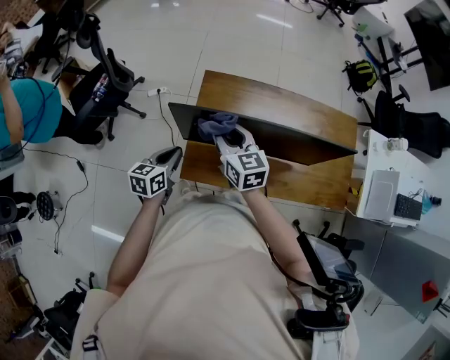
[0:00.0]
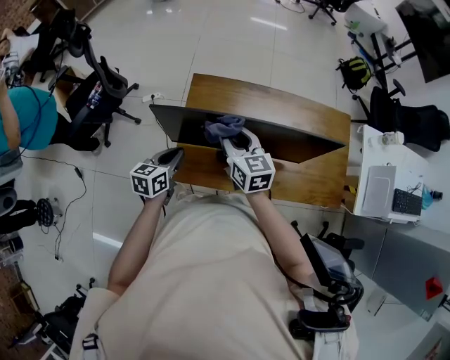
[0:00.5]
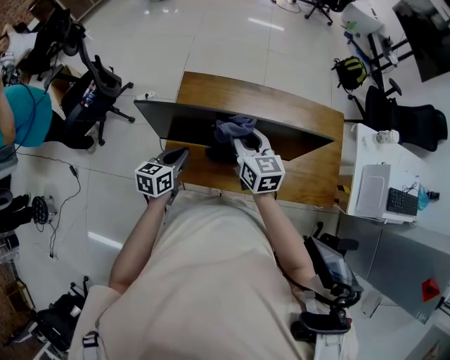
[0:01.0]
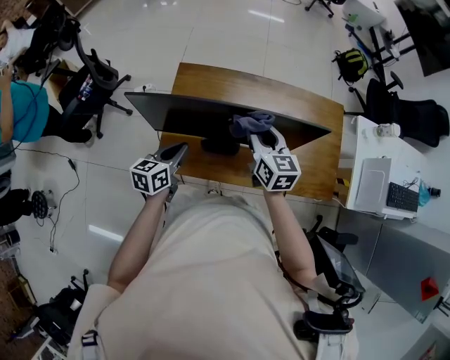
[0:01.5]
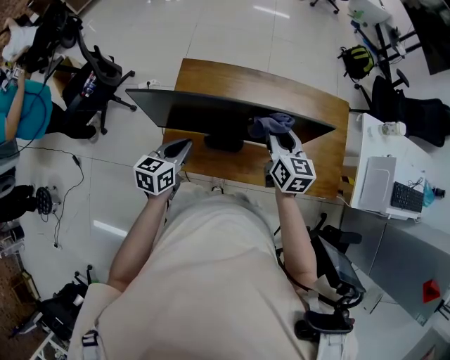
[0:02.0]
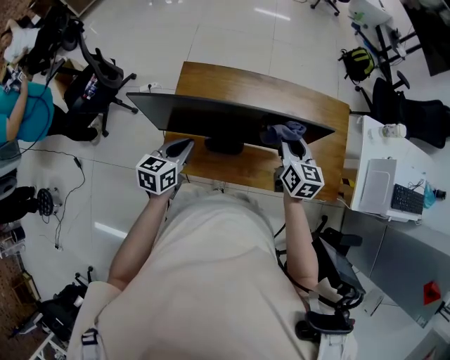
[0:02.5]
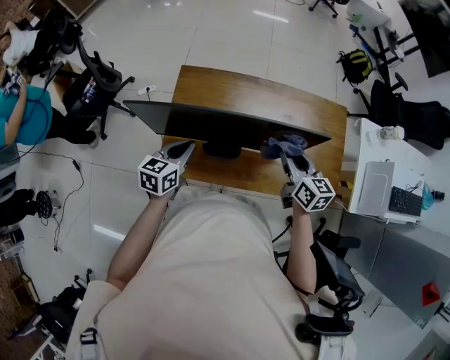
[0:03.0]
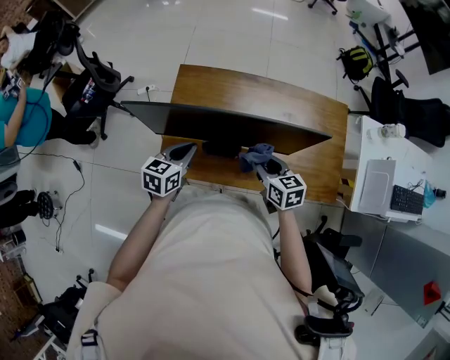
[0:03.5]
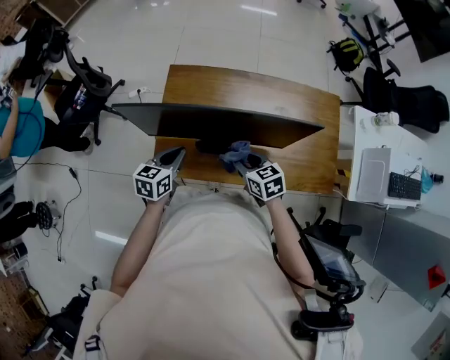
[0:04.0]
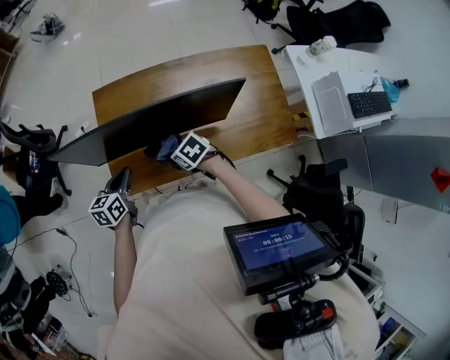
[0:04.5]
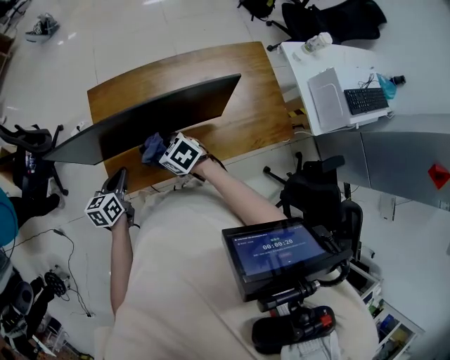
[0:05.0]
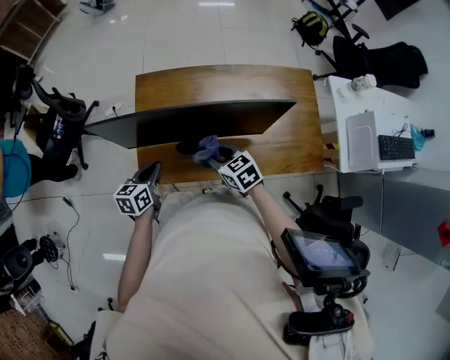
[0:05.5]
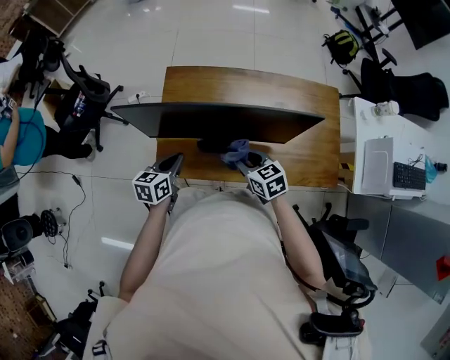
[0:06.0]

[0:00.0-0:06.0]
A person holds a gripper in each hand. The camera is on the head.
0:00.0 to 0:02.0: The right gripper moves to the right, some 25 cm. Meanwhile the left gripper moves to the right, some 15 cm.
0:02.0 to 0:04.0: The right gripper travels downward, backward and to the left by some 15 cm, and changes its angle by some 30 degrees.

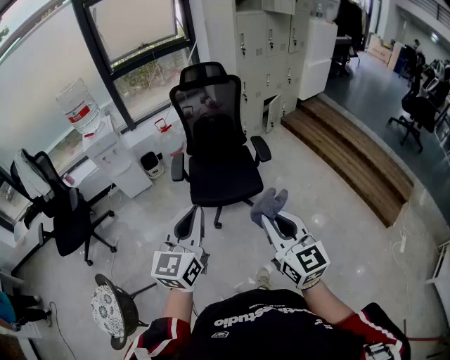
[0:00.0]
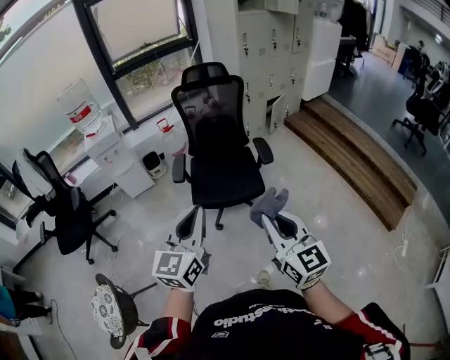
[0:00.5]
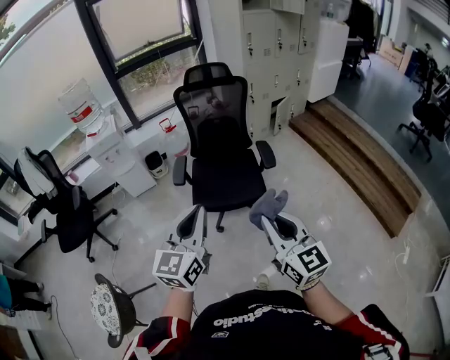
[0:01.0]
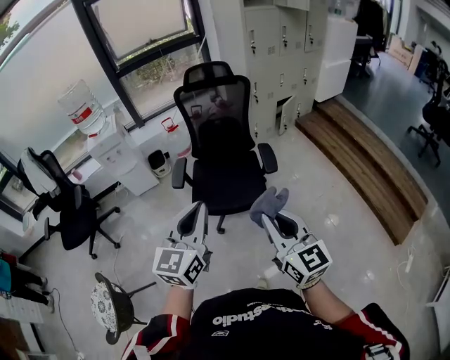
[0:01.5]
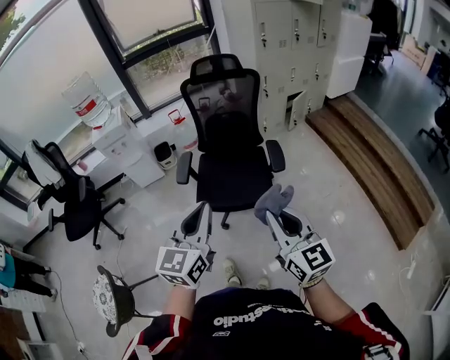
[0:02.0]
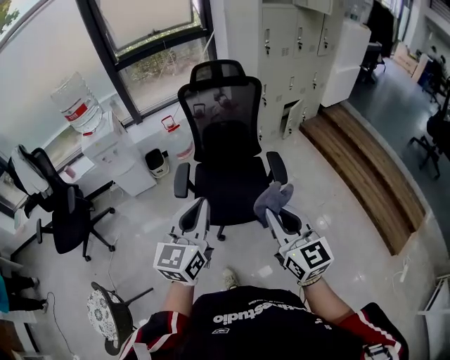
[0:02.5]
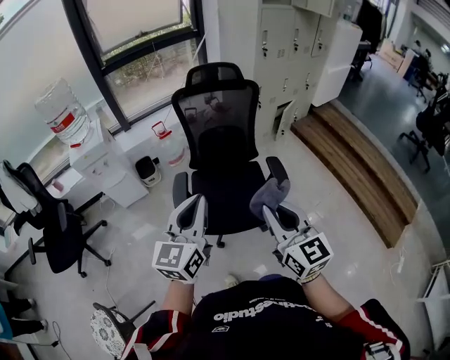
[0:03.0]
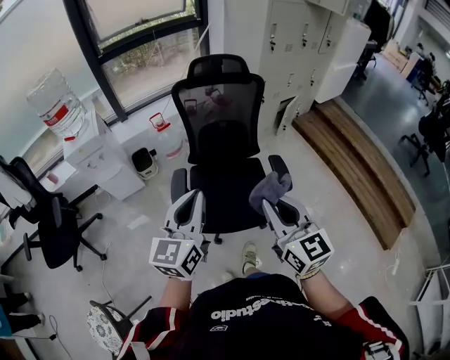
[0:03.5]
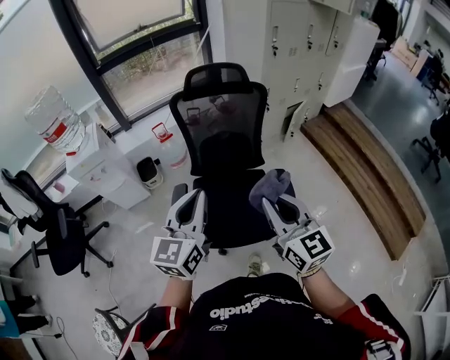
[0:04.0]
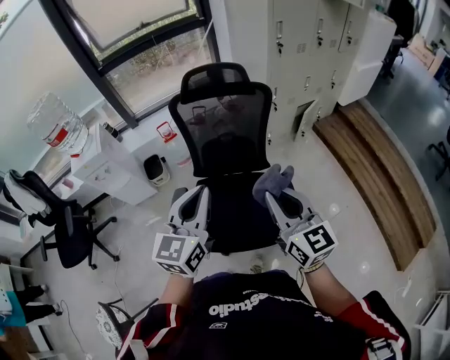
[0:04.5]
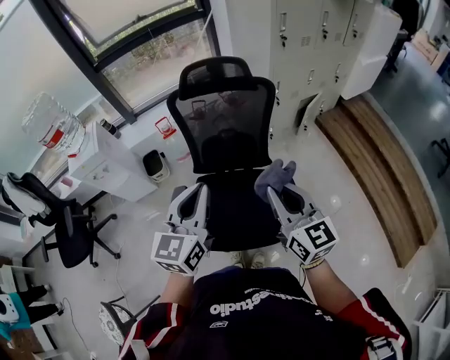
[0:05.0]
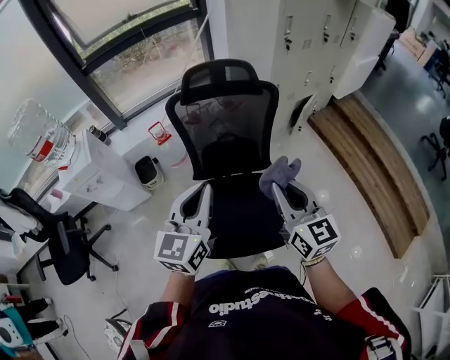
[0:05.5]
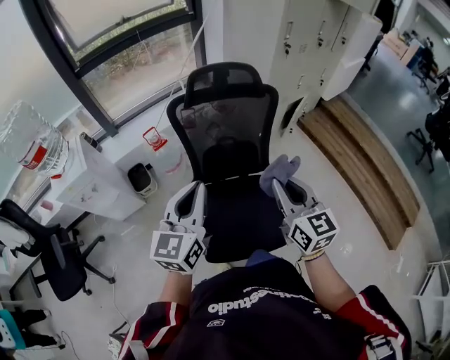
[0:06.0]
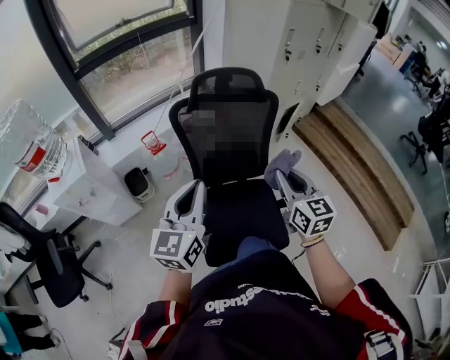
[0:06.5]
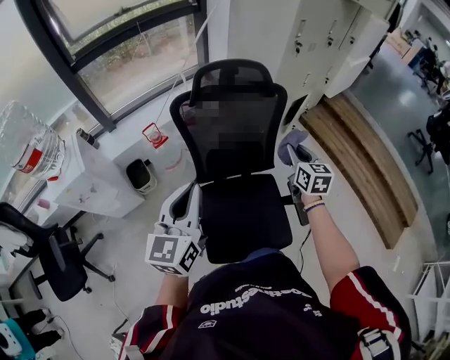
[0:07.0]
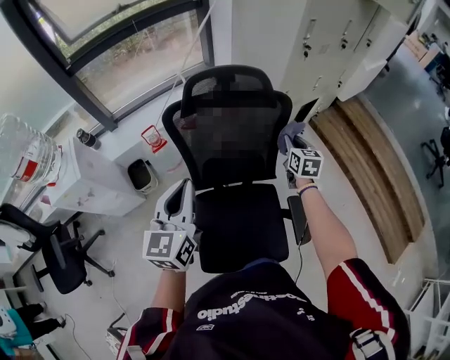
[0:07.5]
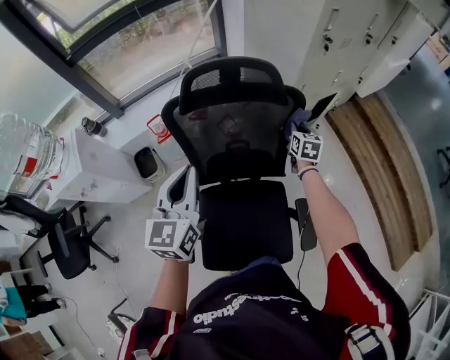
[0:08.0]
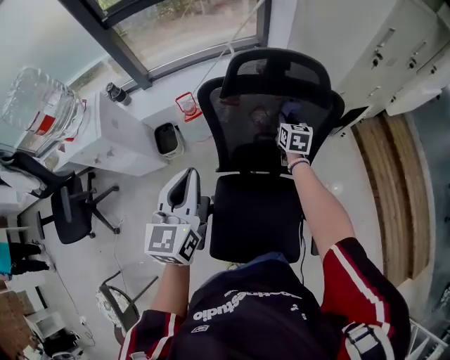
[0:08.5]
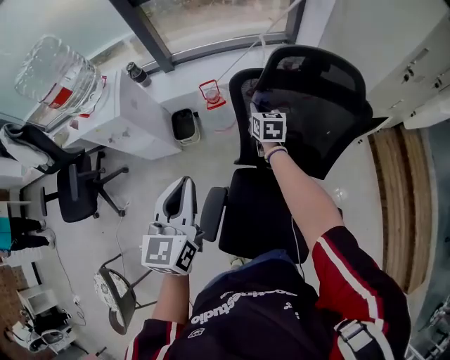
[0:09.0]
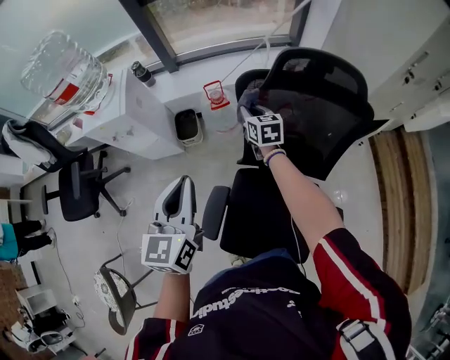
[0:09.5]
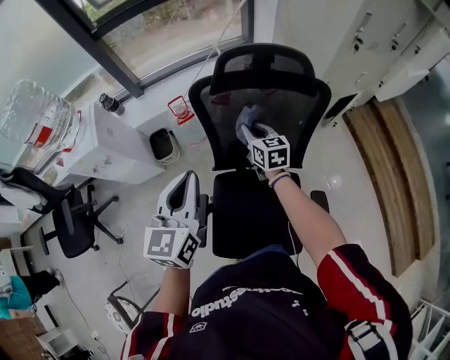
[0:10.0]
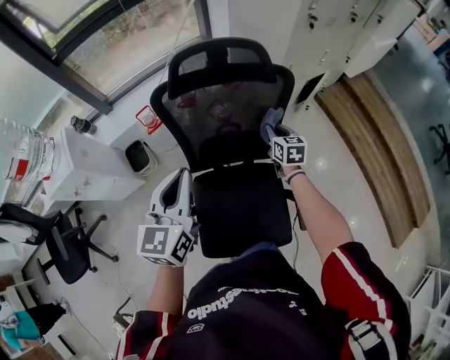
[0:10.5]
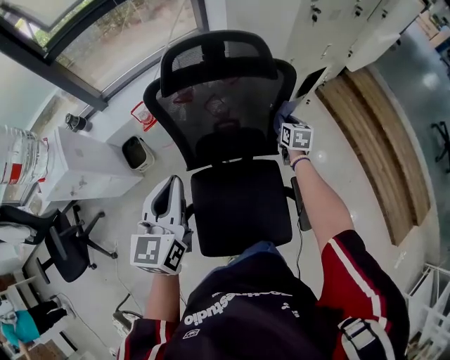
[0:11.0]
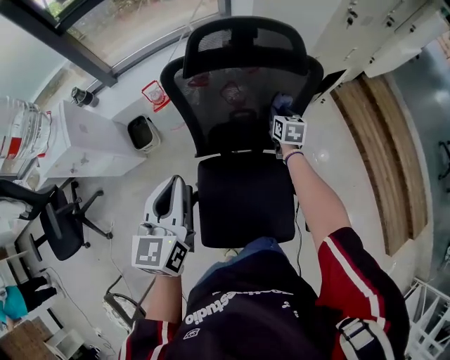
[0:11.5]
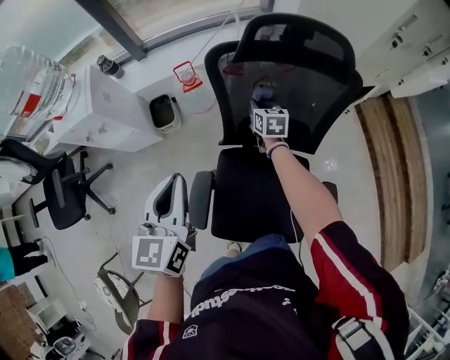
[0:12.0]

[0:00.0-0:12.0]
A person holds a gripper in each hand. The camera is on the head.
0:00.0 to 0:02.0: Both grippers travel together forward and to the right, about 20 cm.
0:02.0 to 0:04.0: The two grippers go about 35 cm forward.
0:04.0 to 0:06.0: The left gripper heads forward and to the left, covering about 20 cm; the right gripper shifts some 20 cm forward.
0:06.0 to 0:08.0: The right gripper moves forward and downward, approximately 50 cm, and swivels roughly 30 degrees. The left gripper is displaced forward by about 25 cm.
0:08.0 to 0:10.0: The right gripper swivels some 30 degrees.
0:10.0 to 0:12.0: The right gripper heads downward and forward, covering about 15 cm, and travels to the right and back again, roughly 30 cm each way, while the left gripper moves to the left and downward, approximately 10 cm.

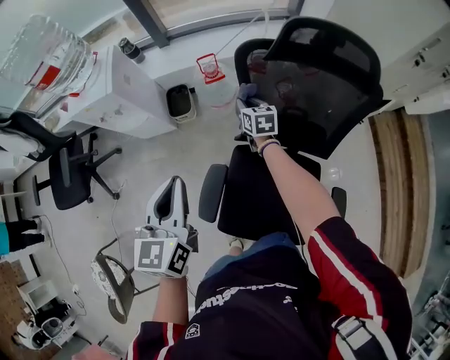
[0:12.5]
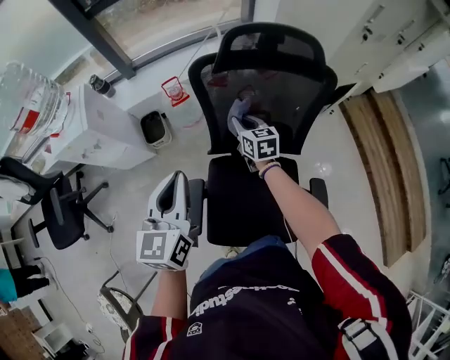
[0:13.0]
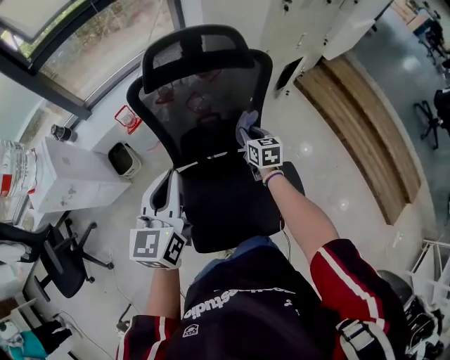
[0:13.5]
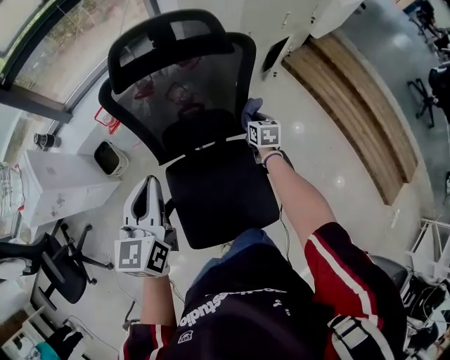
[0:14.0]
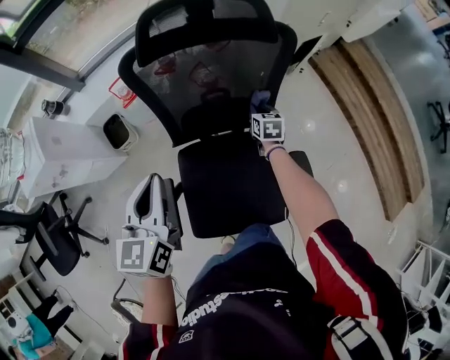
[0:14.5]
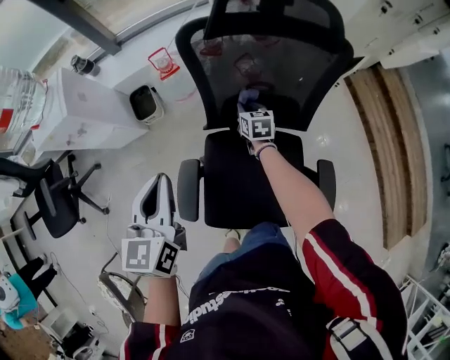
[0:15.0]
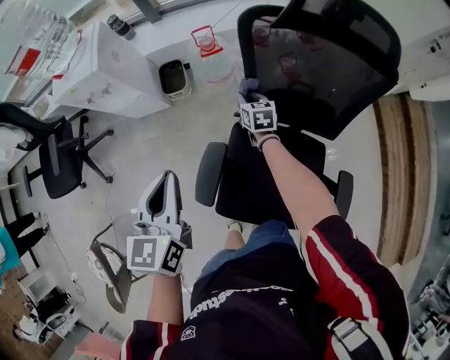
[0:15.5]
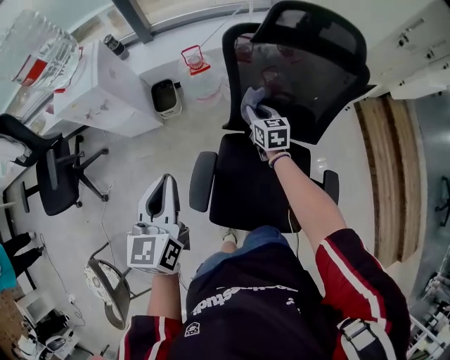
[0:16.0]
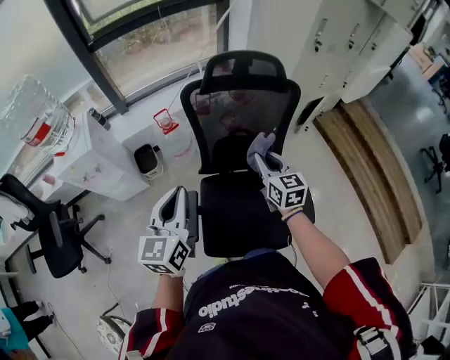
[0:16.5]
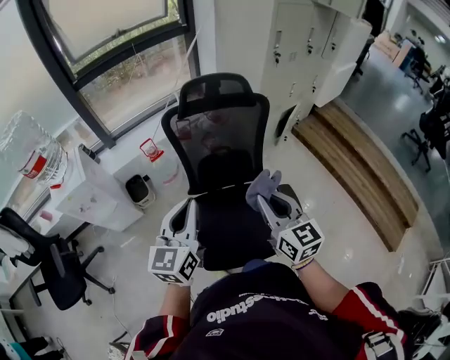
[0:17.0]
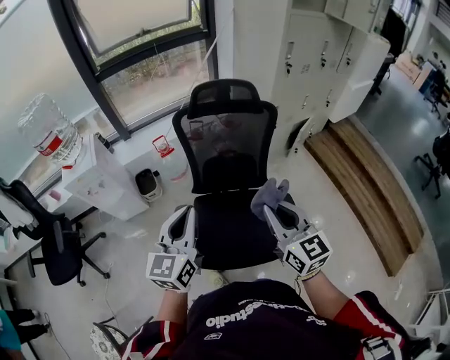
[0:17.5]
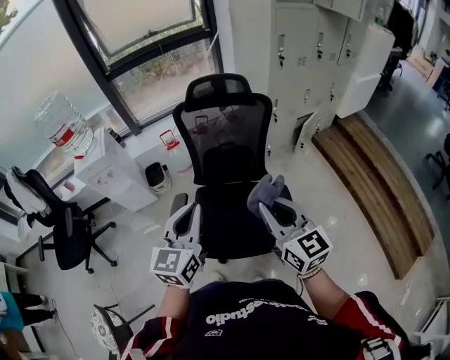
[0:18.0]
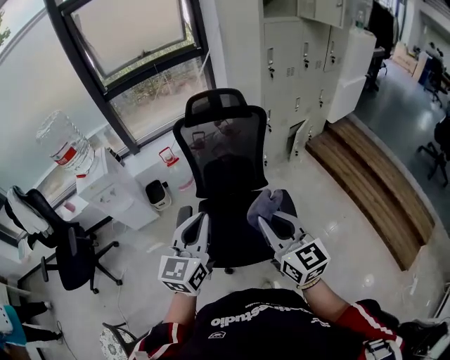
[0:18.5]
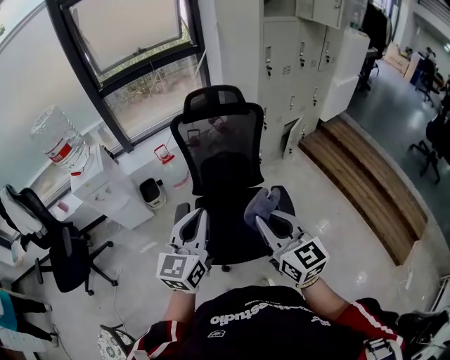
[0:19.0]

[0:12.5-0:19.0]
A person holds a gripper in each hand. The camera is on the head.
0:12.5 to 0:14.5: The left gripper ends up roughly 20 cm from where it was, and rotates some 20 degrees. The right gripper changes place by roughly 40 cm, and rotates roughly 30 degrees.
0:14.5 to 0:17.0: The left gripper shifts by some 25 cm. Meanwhile the right gripper is displaced upward by some 40 cm, and tilts its fingers some 30 degrees upward.
0:17.0 to 0:19.0: The right gripper travels backward by some 20 cm, while the left gripper moves backward and to the right, about 20 cm.

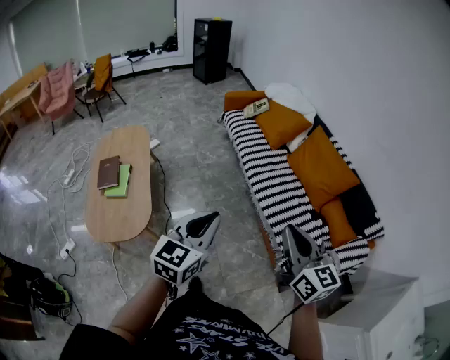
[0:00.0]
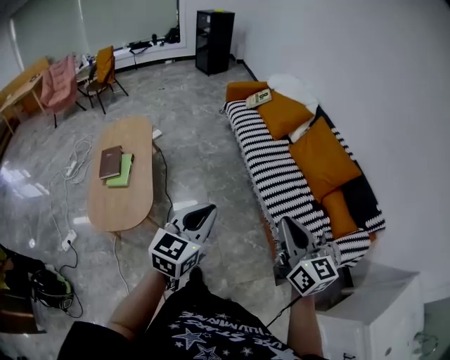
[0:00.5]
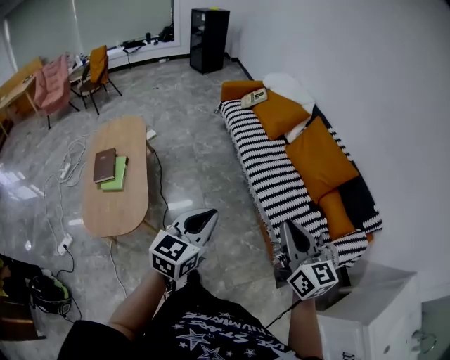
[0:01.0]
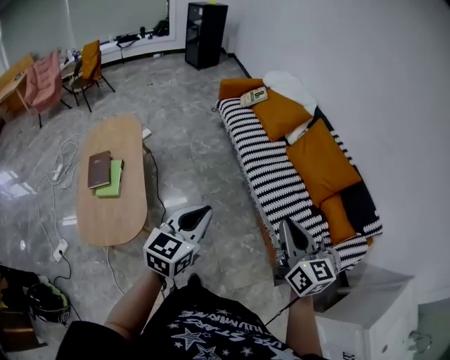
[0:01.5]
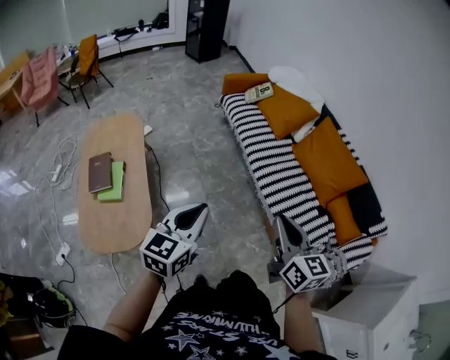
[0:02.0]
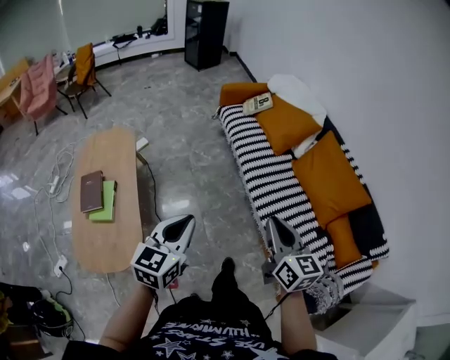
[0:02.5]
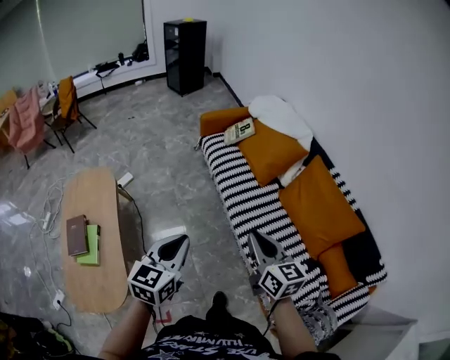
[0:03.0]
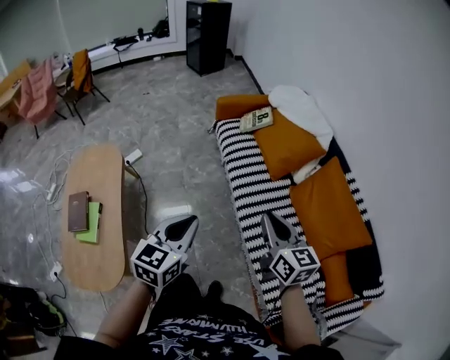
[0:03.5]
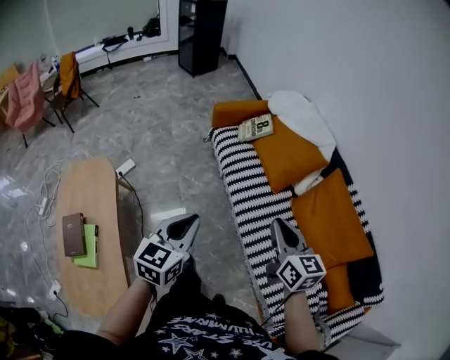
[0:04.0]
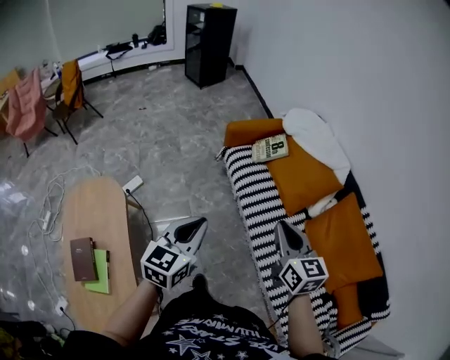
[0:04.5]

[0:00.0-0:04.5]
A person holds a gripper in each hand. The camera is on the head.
0:00.0 to 0:02.0: The left gripper travels to the left and forward by some 15 cm, while the right gripper goes approximately 15 cm forward and to the left.
0:02.0 to 0:04.5: The pair of grippers is taken forward, about 50 cm.
